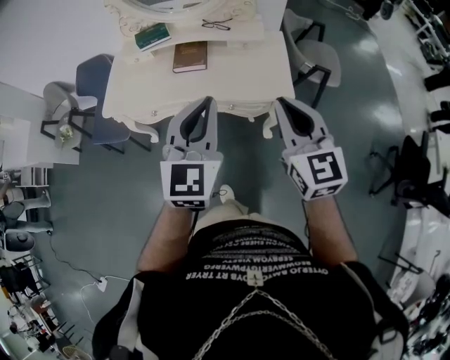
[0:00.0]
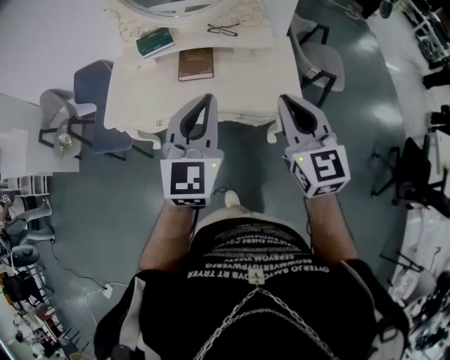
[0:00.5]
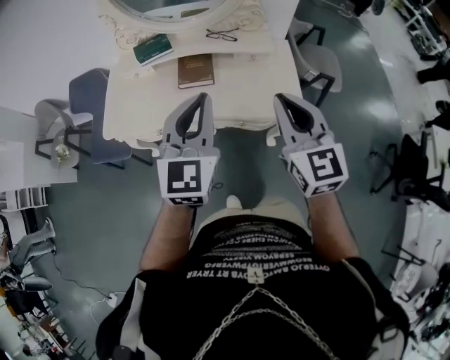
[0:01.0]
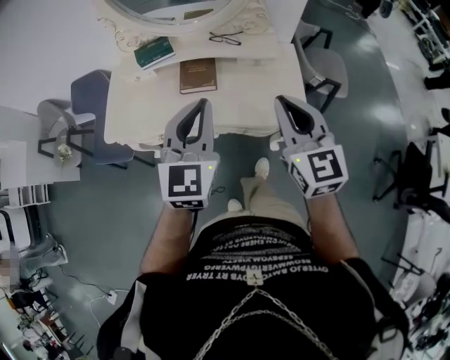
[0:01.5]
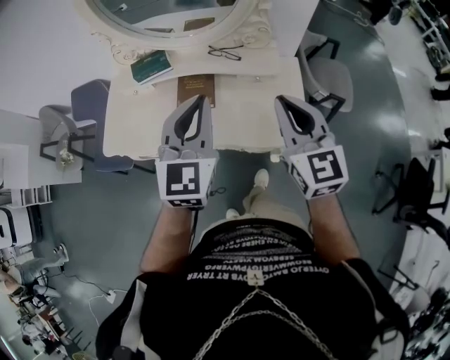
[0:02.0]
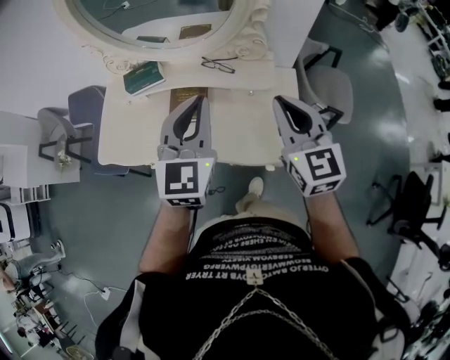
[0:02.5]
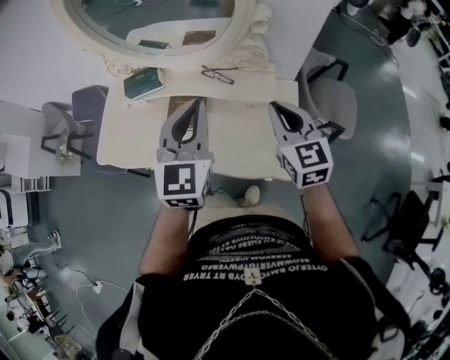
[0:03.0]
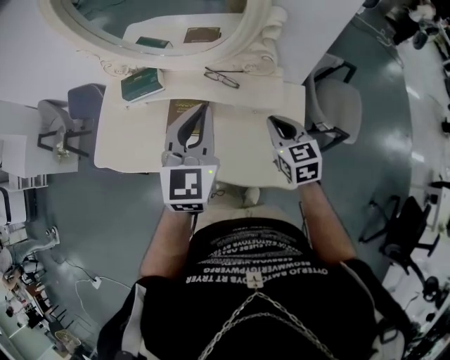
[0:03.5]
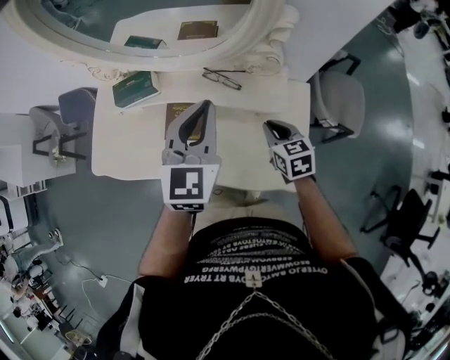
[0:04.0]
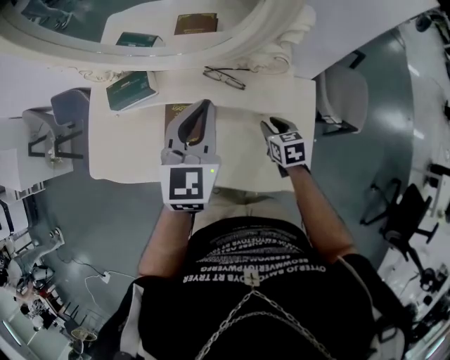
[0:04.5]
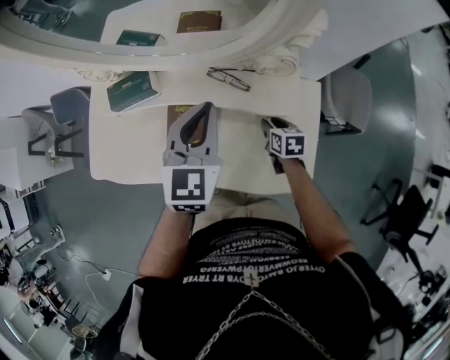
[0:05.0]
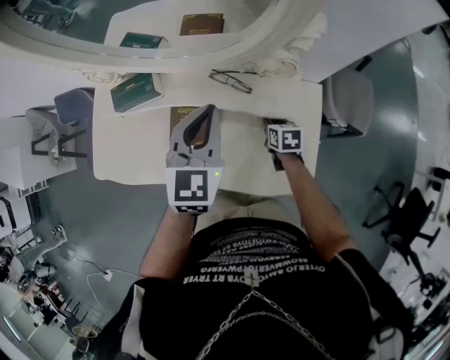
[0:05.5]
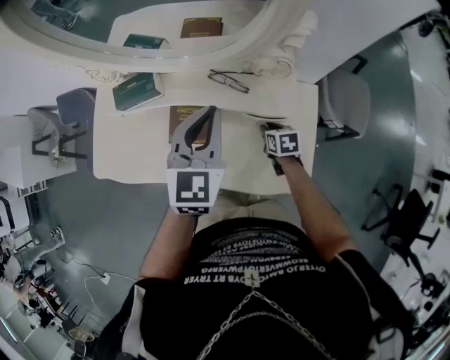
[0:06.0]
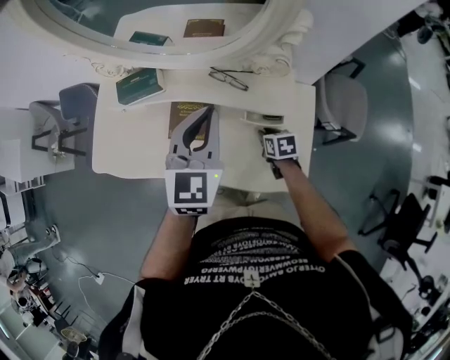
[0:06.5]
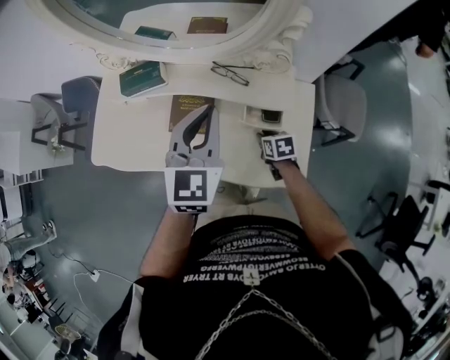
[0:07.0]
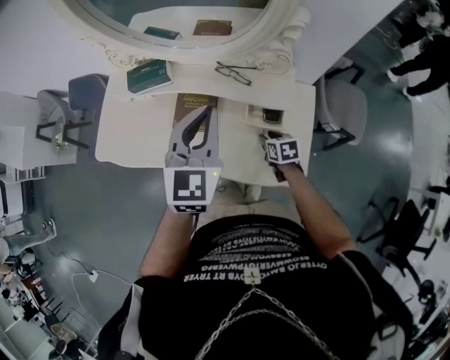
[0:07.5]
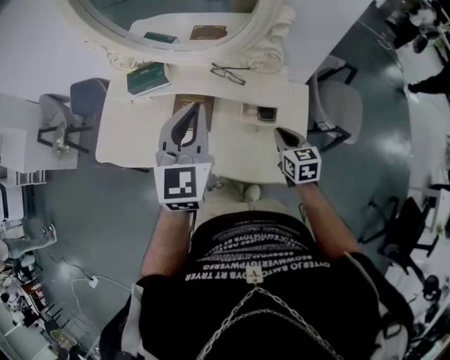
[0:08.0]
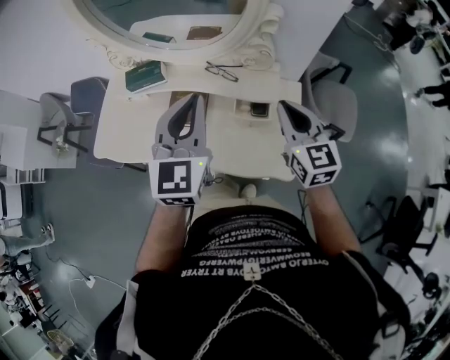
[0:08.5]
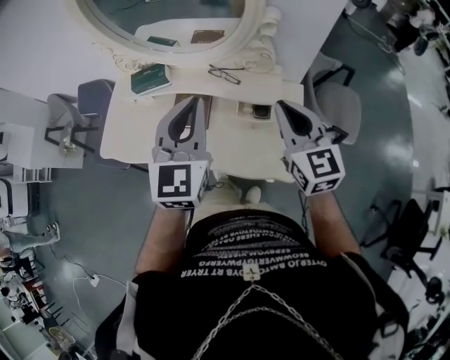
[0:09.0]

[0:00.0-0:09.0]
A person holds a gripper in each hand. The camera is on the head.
0:00.0 to 0:02.0: The grippers both shift forward by roughly 25 cm.
0:02.0 to 0:04.5: The right gripper heads downward and forward, covering some 40 cm, tilts its fingers roughly 40 degrees downward, and opens its fingers. Meanwhile the left gripper moves forward and downward, roughly 25 cm.
0:04.5 to 0:07.0: The left gripper travels backward by some 5 cm. The right gripper moves downward and backward, about 10 cm.
0:07.0 to 0:09.0: The right gripper goes some 40 cm upward, and tilts its fingers about 50 degrees upward. Meanwhile the left gripper travels upward and backward by roughly 10 cm.

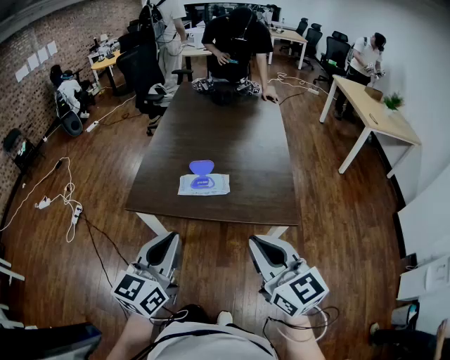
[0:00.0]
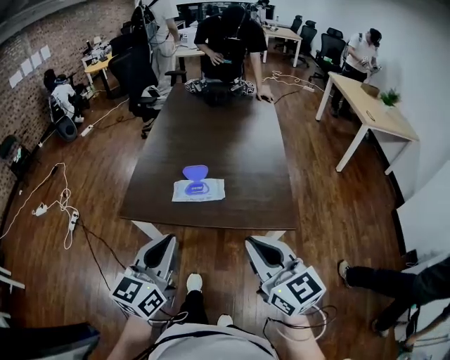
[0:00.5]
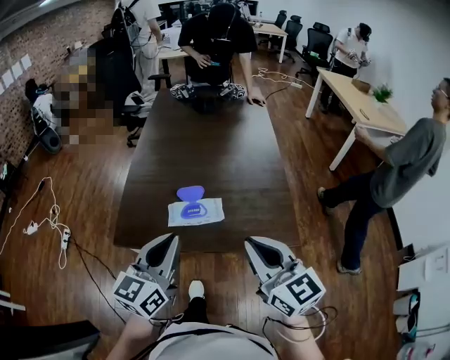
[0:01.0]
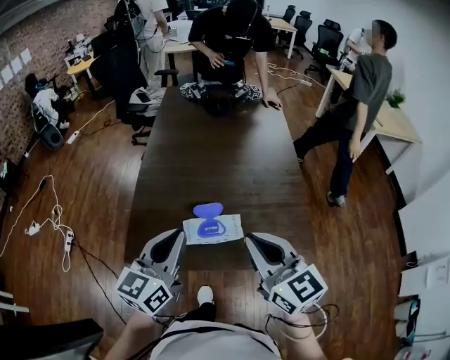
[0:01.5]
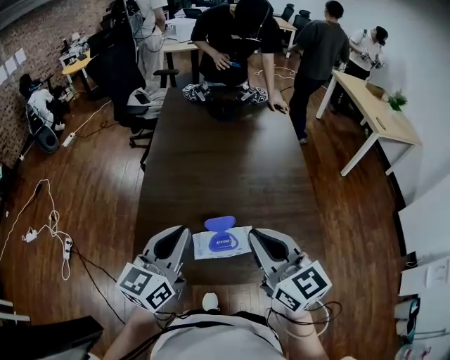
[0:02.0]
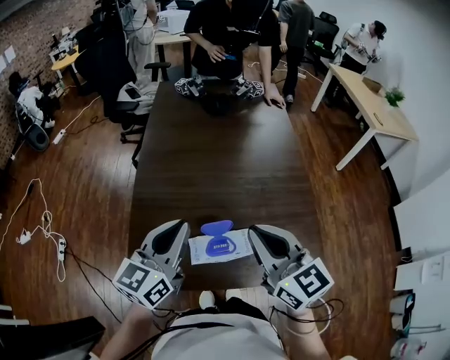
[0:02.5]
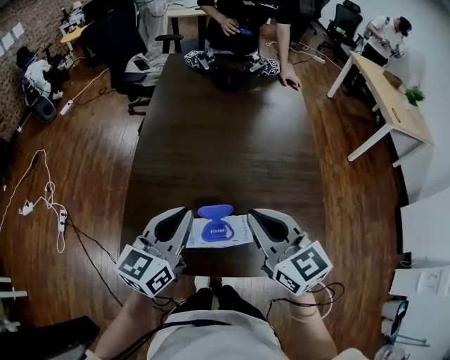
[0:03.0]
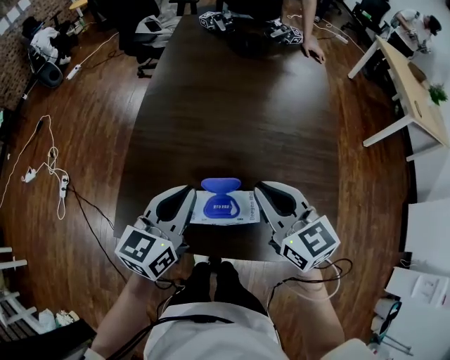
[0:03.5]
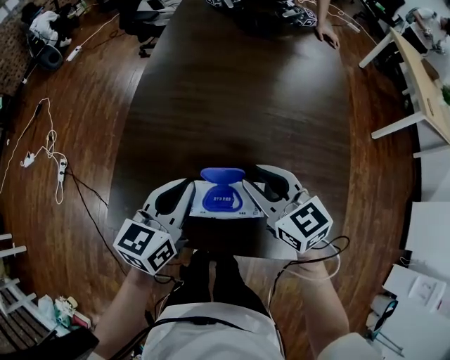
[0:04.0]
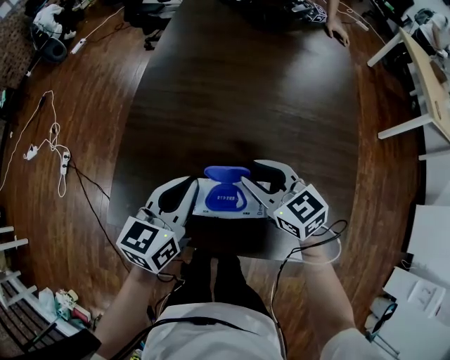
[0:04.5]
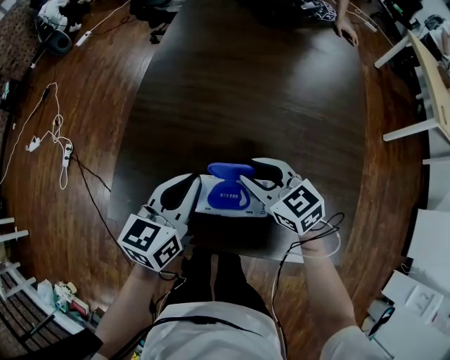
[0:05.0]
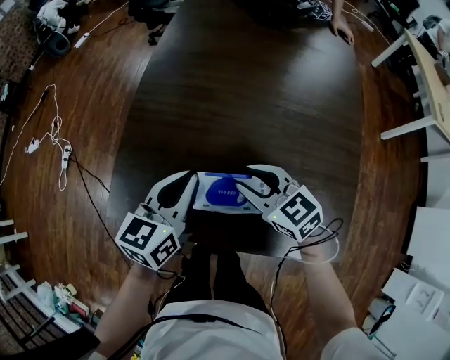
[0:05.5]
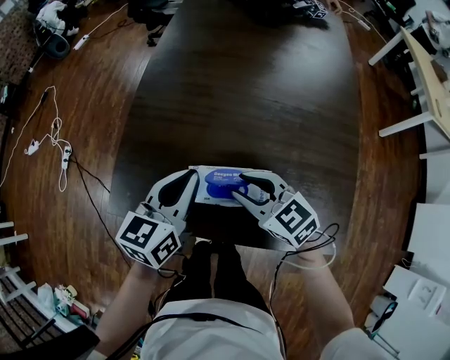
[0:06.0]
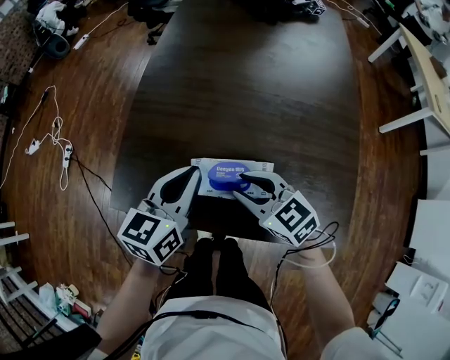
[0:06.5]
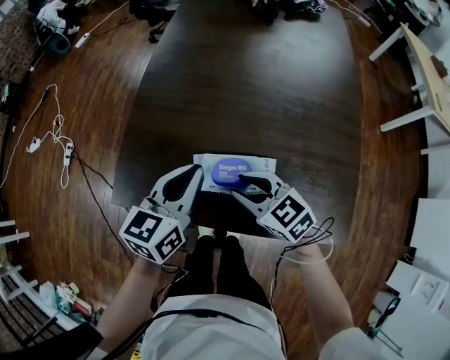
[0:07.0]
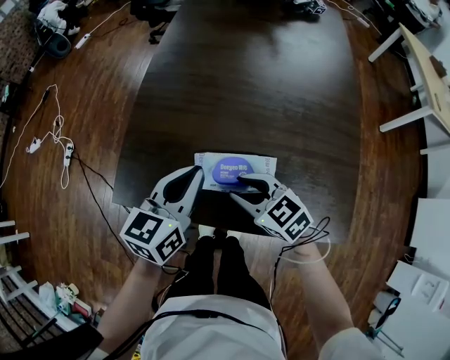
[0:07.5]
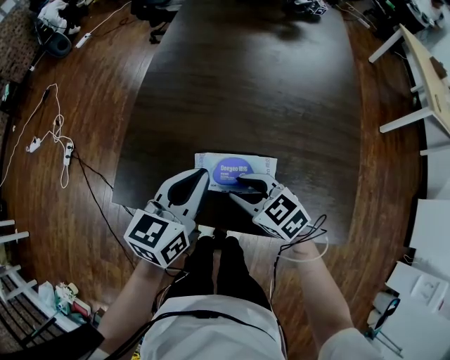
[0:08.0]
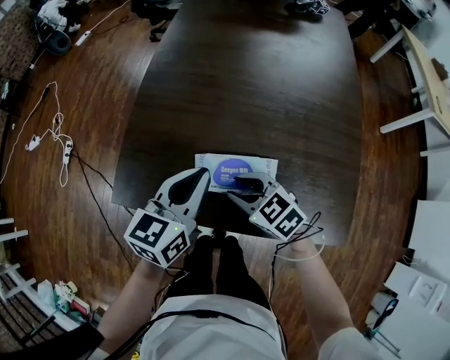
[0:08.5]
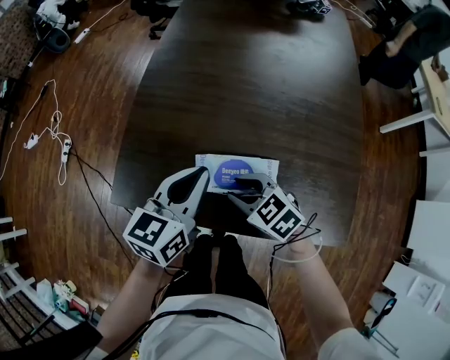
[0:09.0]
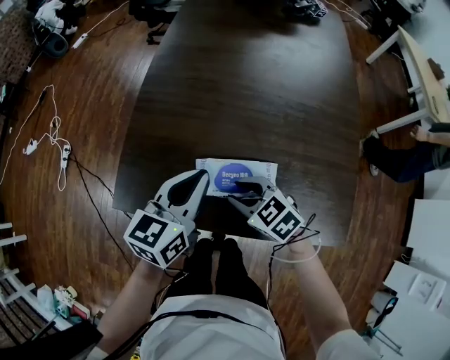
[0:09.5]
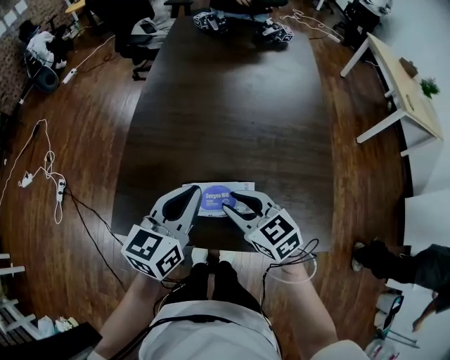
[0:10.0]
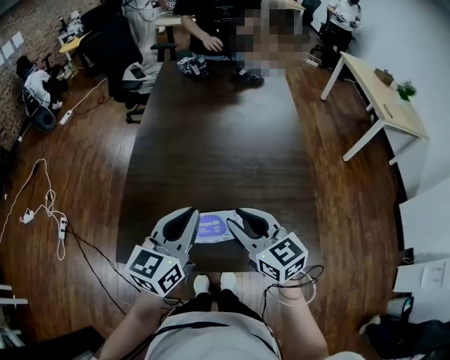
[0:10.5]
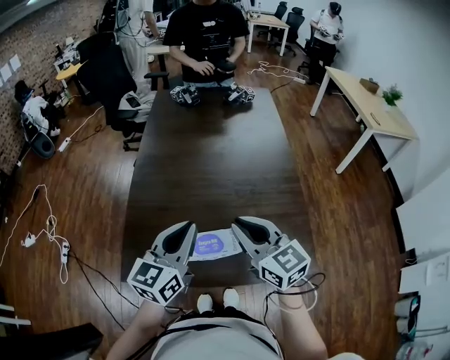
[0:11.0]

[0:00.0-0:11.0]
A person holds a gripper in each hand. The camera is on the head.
0:00.0 to 0:02.0: Both grippers move forward, about 35 cm.
0:02.0 to 0:03.5: The two grippers go about 15 cm downward and forward.
0:03.5 to 0:05.5: The left gripper is displaced downward by roughly 5 cm. Meanwhile the right gripper travels downward by roughly 15 cm, rotates approximately 20 degrees, and opens its fingers.
0:05.5 to 0:07.5: The left gripper moves roughly 5 cm. The right gripper travels backward by some 10 cm.
0:07.5 to 0:09.0: The grippers move only a little.
0:09.0 to 0:11.0: The right gripper shifts some 25 cm upward, and angles its fingers upward, by some 30 degrees, while the left gripper shifts about 15 cm upward.

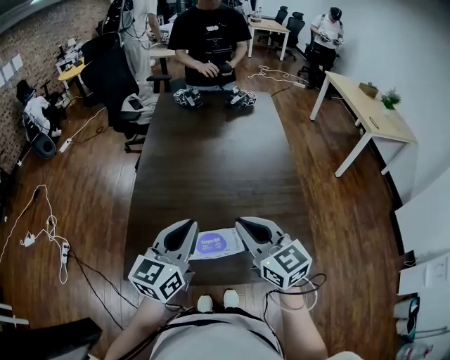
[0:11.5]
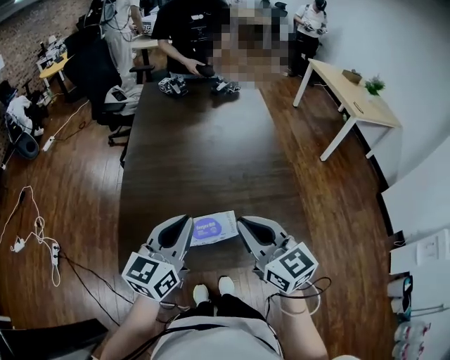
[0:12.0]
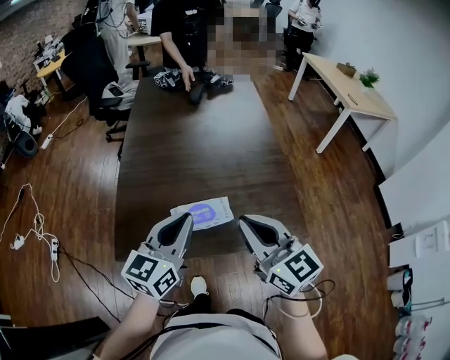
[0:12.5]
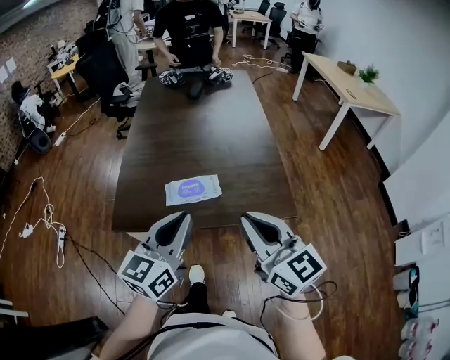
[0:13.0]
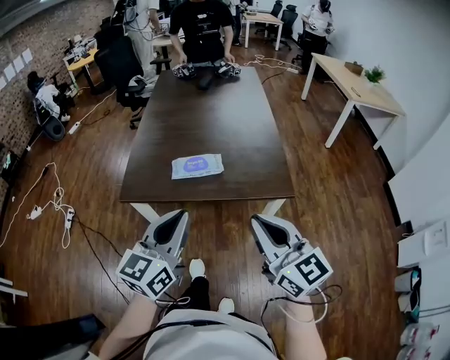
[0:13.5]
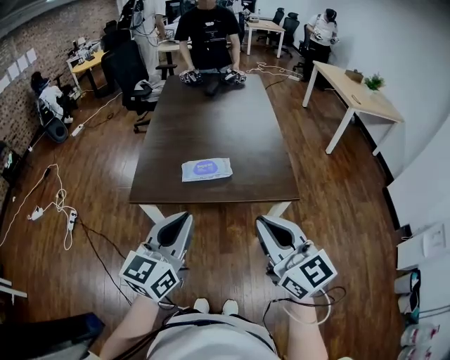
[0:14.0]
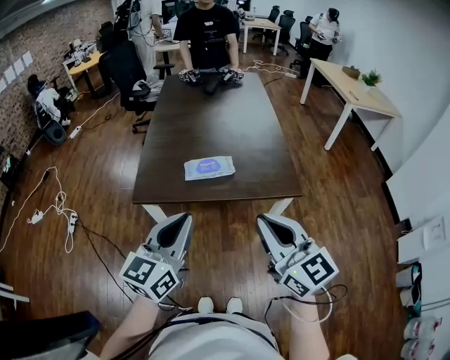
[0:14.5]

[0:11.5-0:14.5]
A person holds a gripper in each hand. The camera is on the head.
0:11.5 to 0:13.0: Both grippers move backward, roughly 25 cm.
0:13.0 to 0:14.5: The grippers both shift backward by some 15 cm.

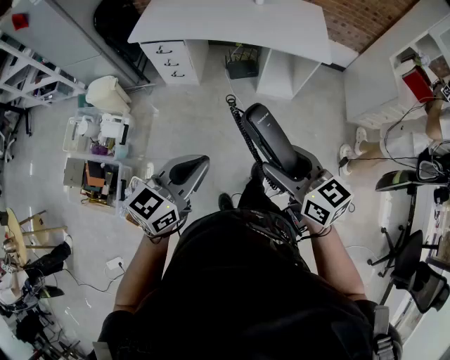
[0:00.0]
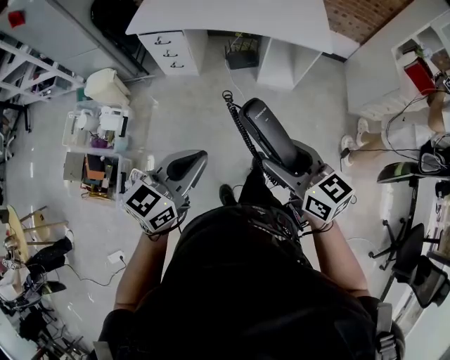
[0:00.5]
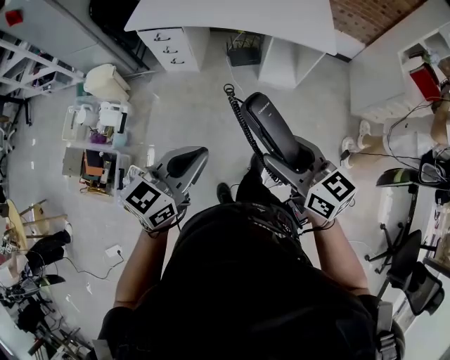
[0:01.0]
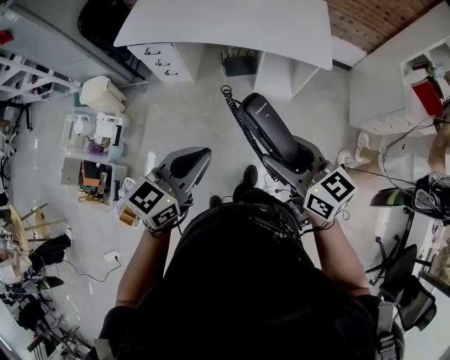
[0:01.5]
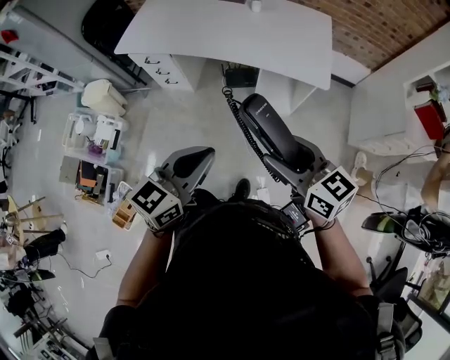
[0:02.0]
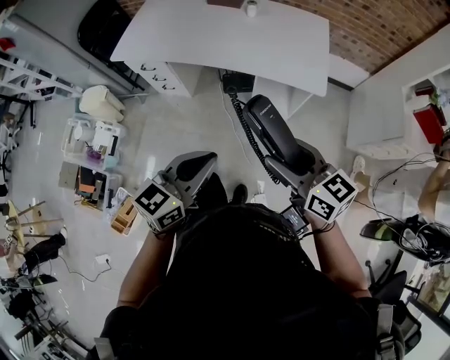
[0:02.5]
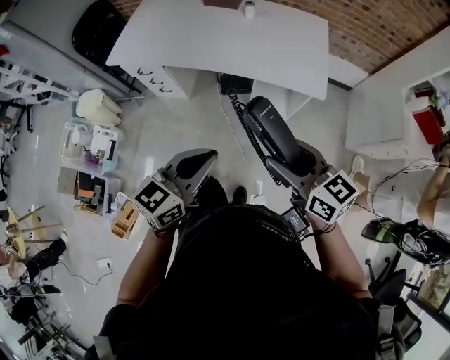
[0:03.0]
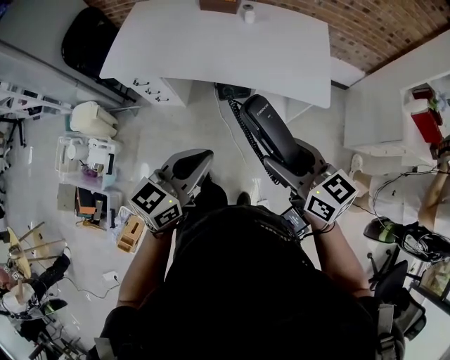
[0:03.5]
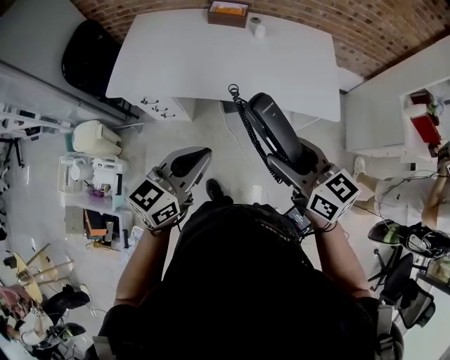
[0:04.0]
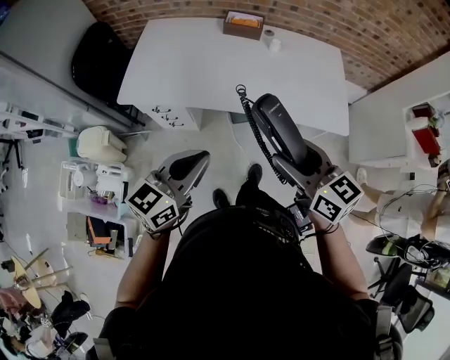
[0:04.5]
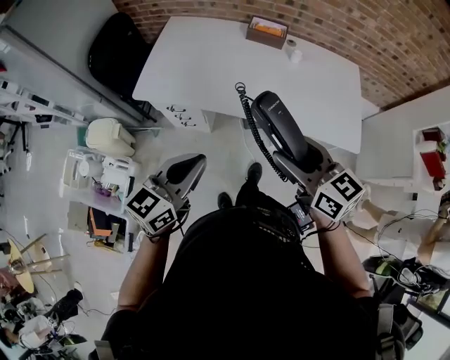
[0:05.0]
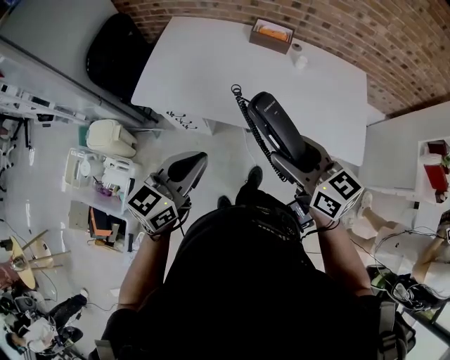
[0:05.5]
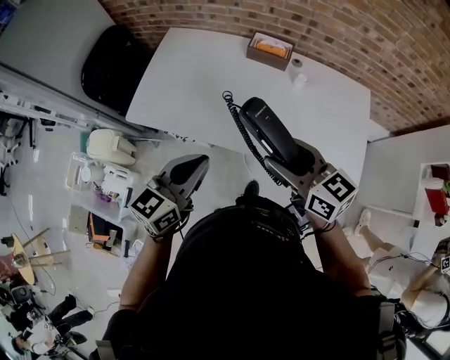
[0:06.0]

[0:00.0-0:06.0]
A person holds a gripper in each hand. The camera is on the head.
0:00.0 to 0:02.0: The grippers both shift forward and to the right by about 25 cm.
0:02.0 to 0:04.0: Both grippers move forward and to the left, roughly 25 cm.
0:04.0 to 0:06.0: The grippers both shift forward by approximately 25 cm.
